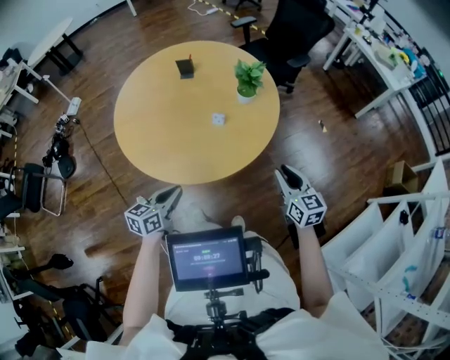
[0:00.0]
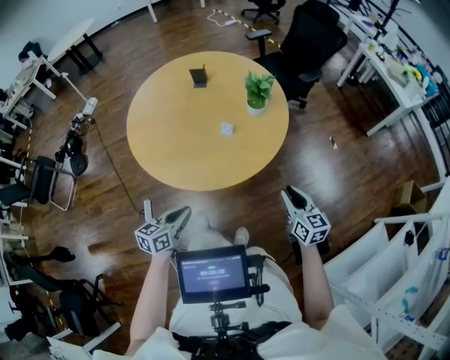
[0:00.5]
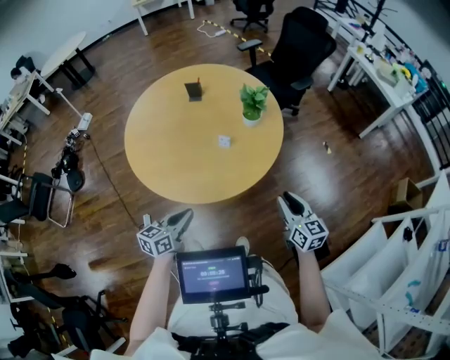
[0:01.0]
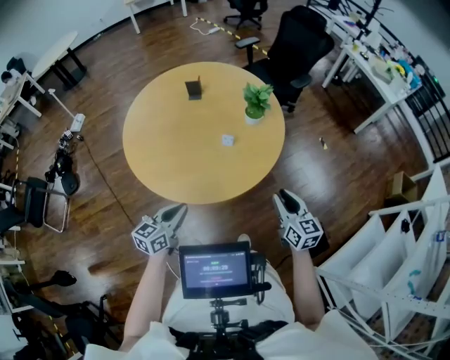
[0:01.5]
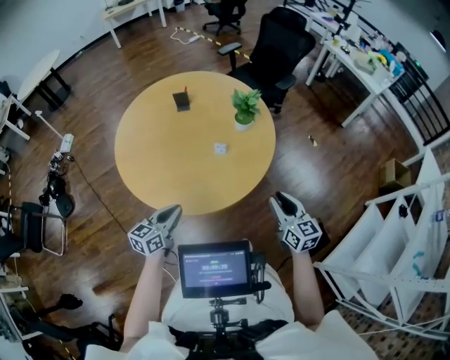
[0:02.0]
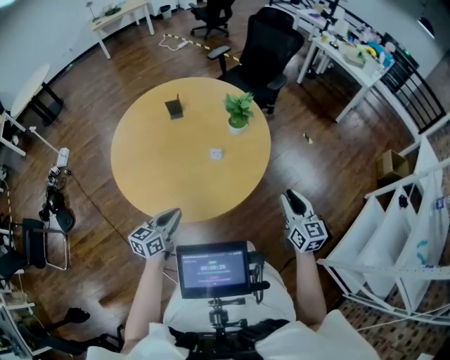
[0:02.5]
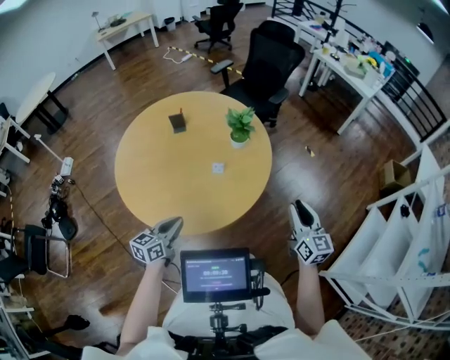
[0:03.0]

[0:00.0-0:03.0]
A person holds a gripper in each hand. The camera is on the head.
0:00.0 to 0:01.5: The right gripper shifts about 5 cm to the left.
0:01.5 to 0:03.0: The left gripper moves forward, about 5 cm. The right gripper is displaced upward by about 5 cm, and turns by approximately 20 degrees.

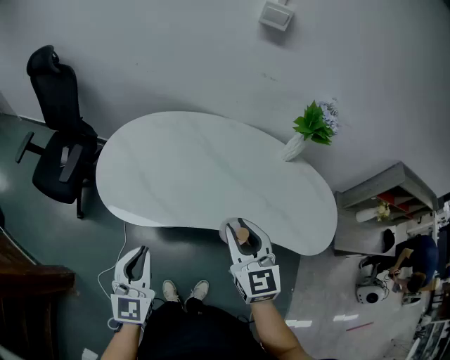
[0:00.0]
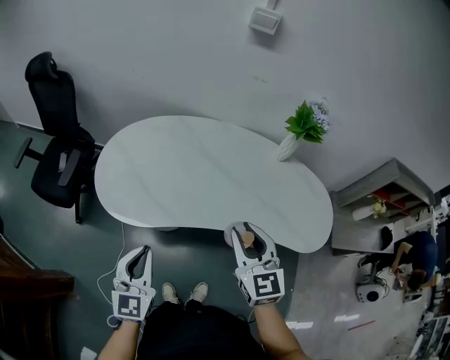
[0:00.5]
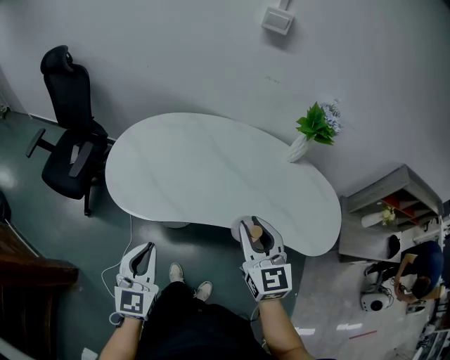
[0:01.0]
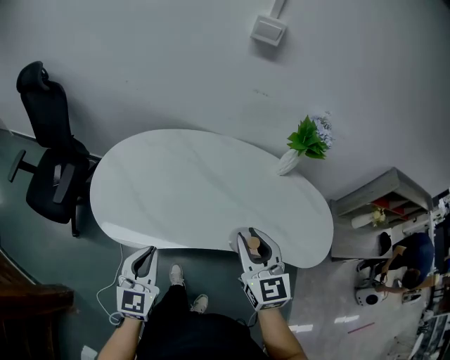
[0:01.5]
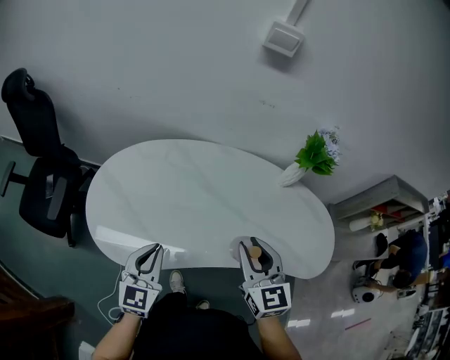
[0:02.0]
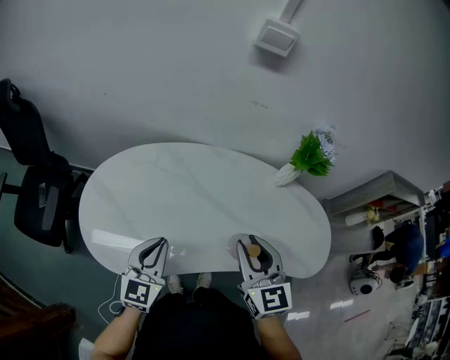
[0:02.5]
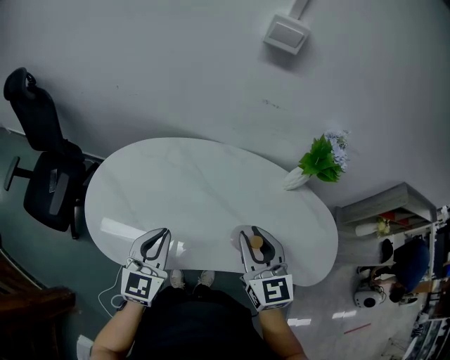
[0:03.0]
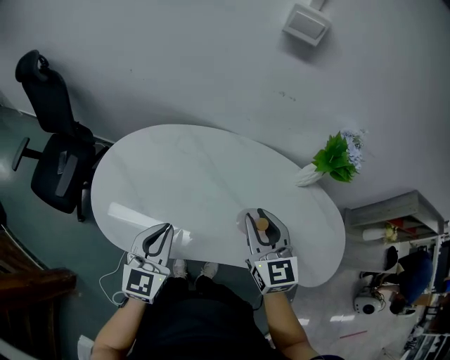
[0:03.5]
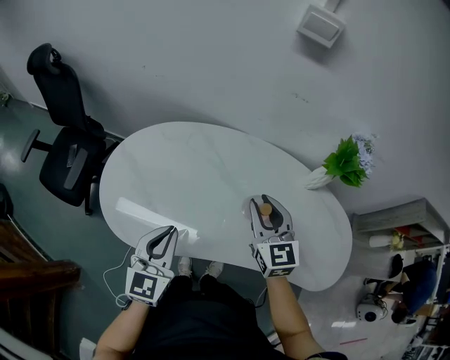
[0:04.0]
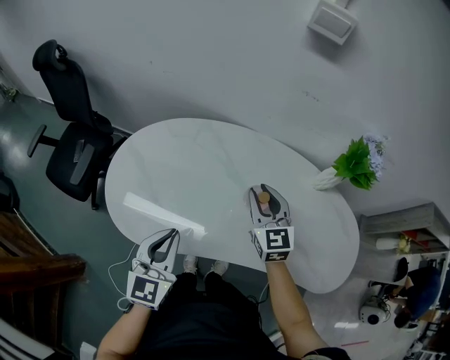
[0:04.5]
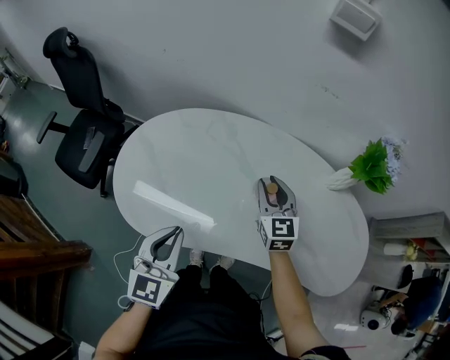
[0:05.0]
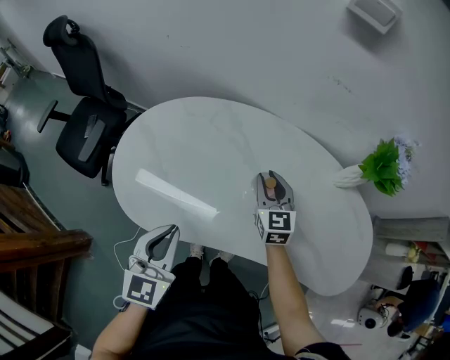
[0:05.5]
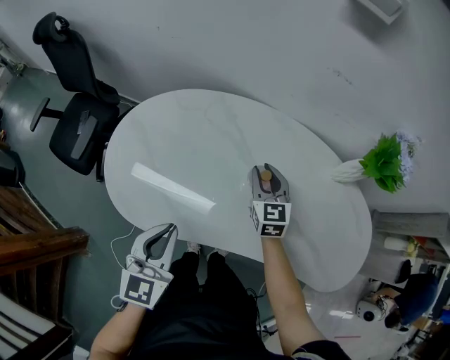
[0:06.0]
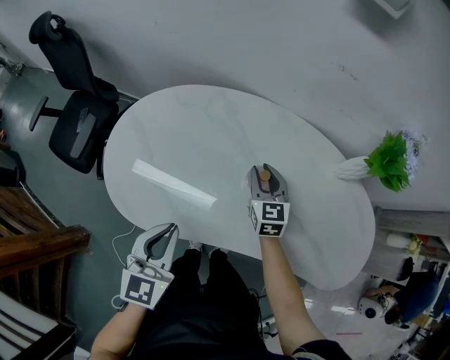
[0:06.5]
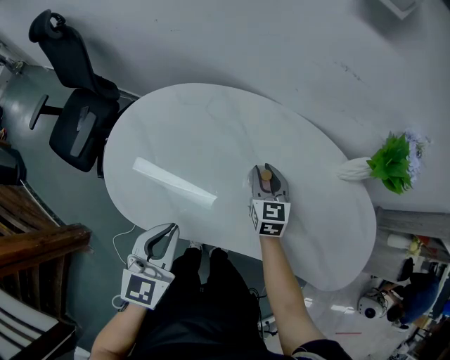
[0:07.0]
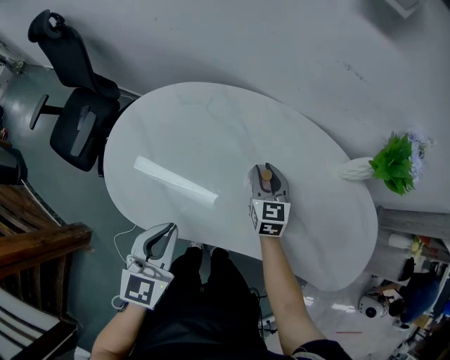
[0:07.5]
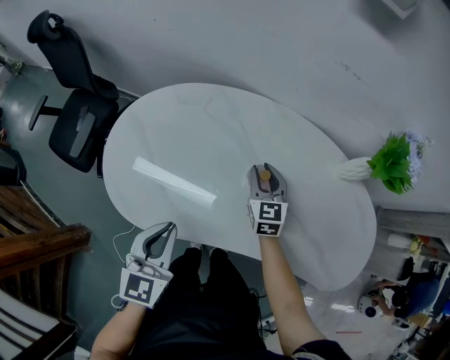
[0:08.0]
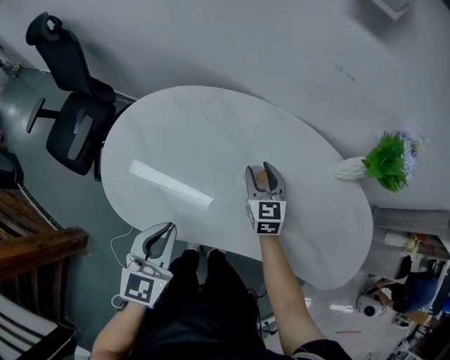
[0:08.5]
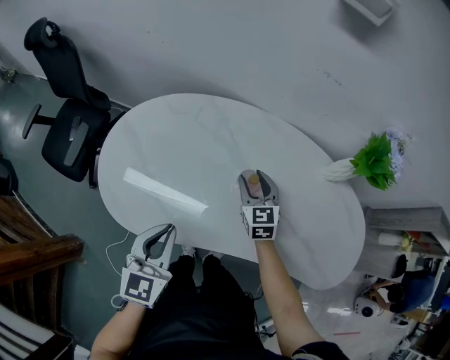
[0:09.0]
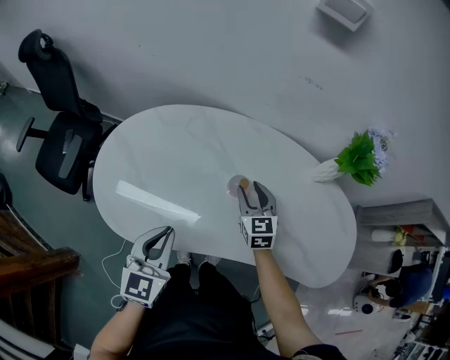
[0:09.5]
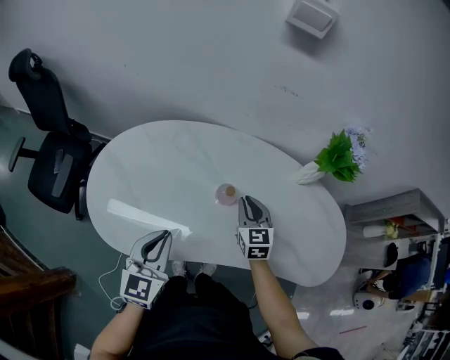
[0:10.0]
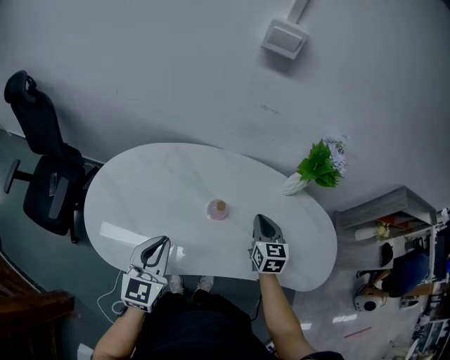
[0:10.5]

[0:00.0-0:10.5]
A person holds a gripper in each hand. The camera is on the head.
0:00.0 to 0:02.0: The left gripper shifts about 15 cm forward, while the right gripper shifts some 10 cm forward.
0:02.0 to 0:04.0: The right gripper is displaced forward by some 15 cm; the left gripper moves roughly 5 cm.
0:04.0 to 0:06.5: The right gripper is displaced downward and forward by roughly 20 cm.
0:06.5 to 0:08.5: The grippers stay close to where they were, moving slightly.
0:08.5 to 0:10.5: The right gripper travels to the right, upward and backward by some 15 cm, rotates roughly 20 degrees, and closes. The left gripper moves roughly 5 cm.

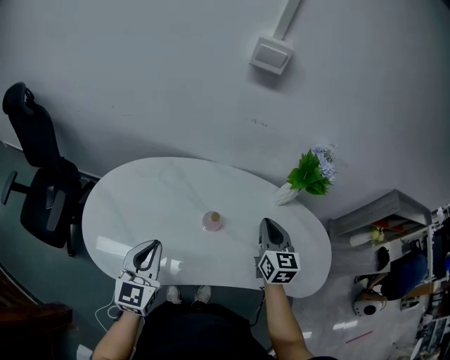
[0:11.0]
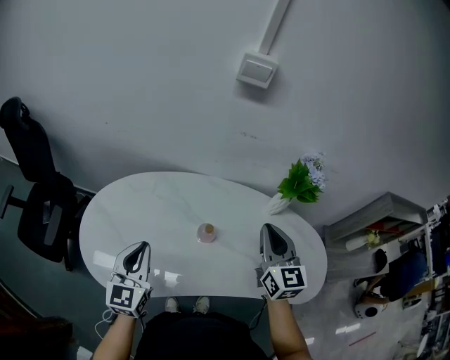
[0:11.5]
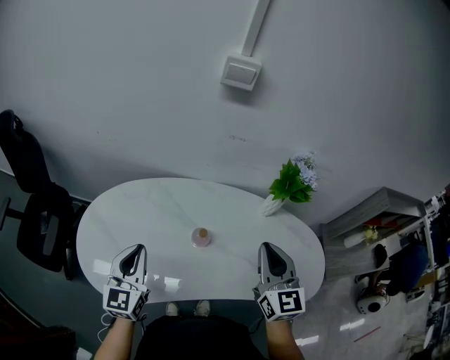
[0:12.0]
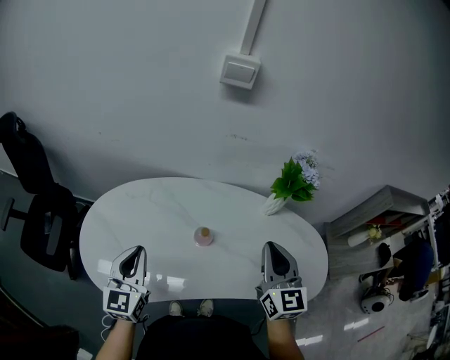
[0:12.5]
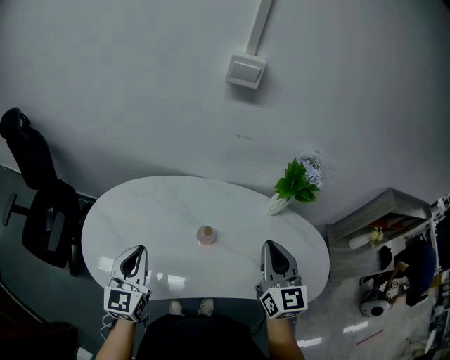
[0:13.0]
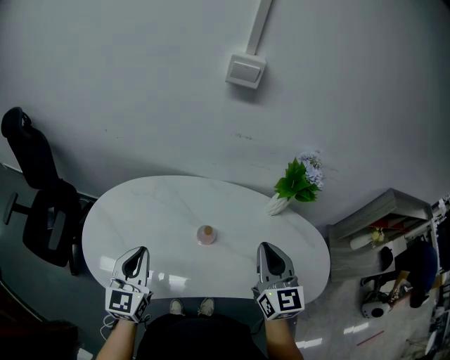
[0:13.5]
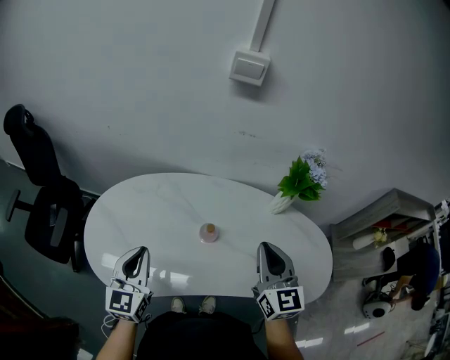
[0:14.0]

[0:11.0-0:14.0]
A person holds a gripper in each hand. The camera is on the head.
0:11.0 to 0:12.5: The right gripper heads upward and backward, covering roughly 10 cm.
0:12.5 to 0:14.0: The grippers stay close to where they were, moving slightly.

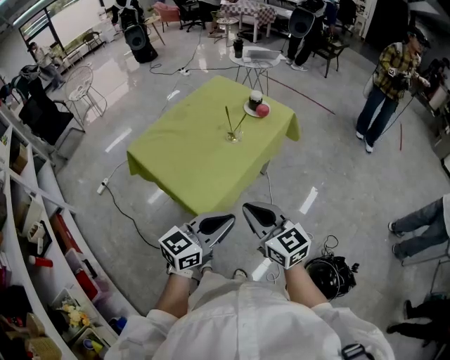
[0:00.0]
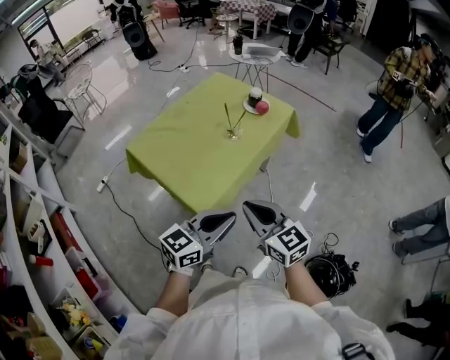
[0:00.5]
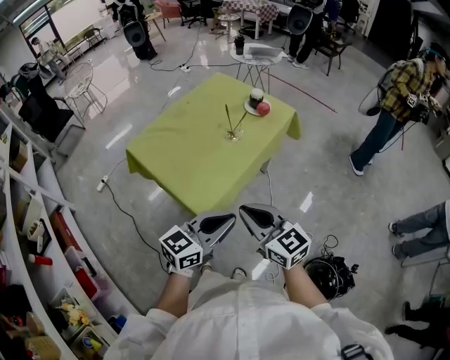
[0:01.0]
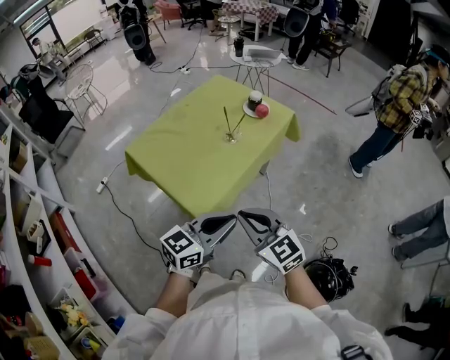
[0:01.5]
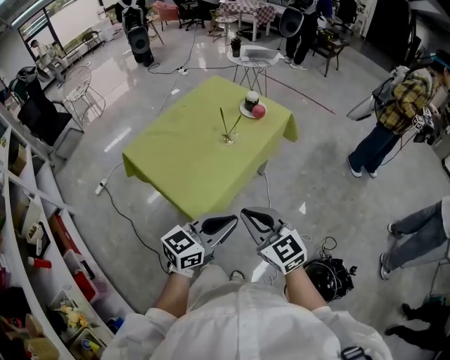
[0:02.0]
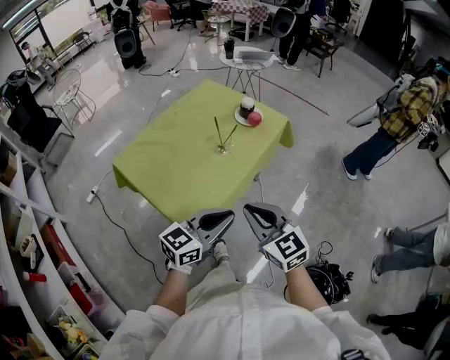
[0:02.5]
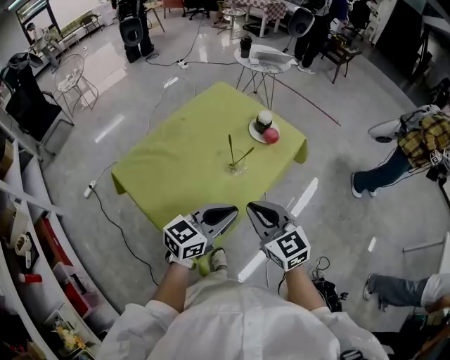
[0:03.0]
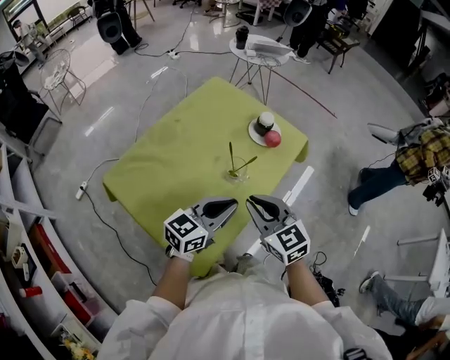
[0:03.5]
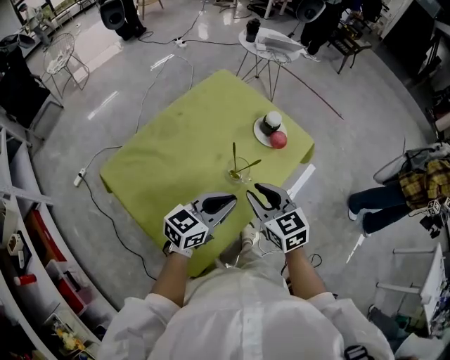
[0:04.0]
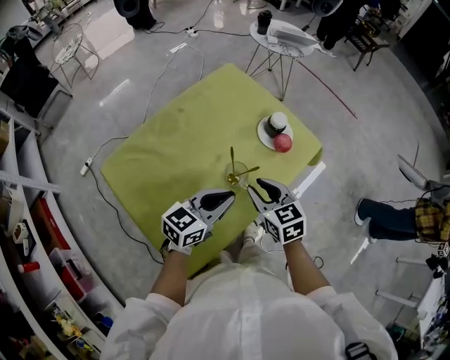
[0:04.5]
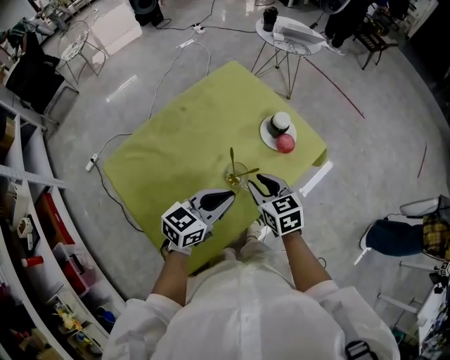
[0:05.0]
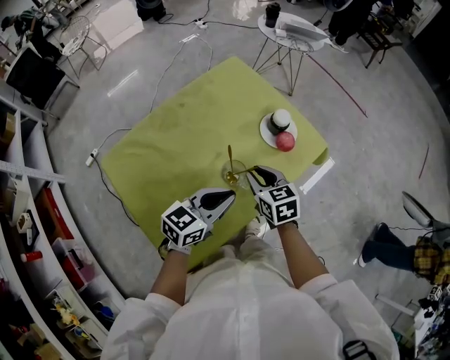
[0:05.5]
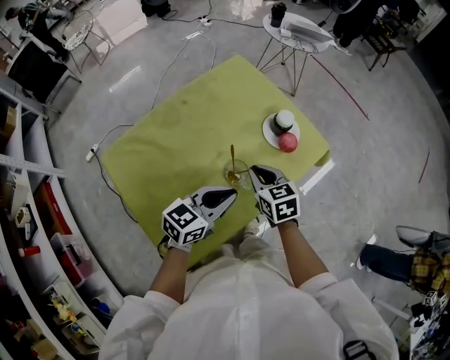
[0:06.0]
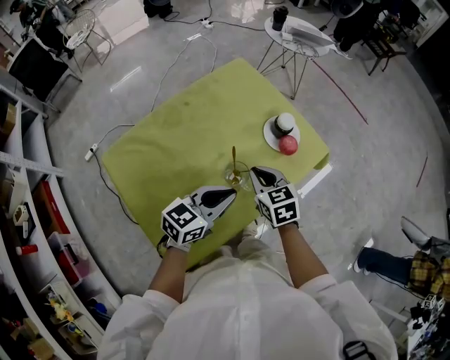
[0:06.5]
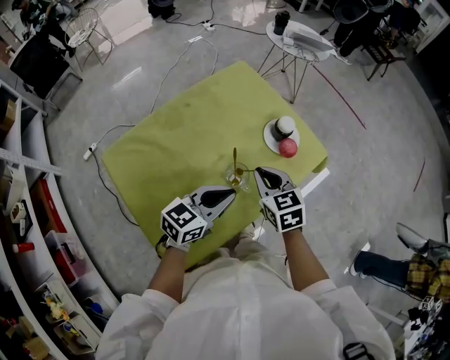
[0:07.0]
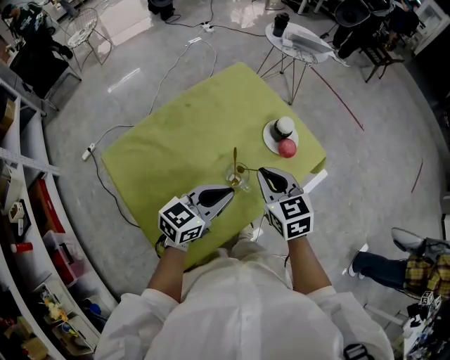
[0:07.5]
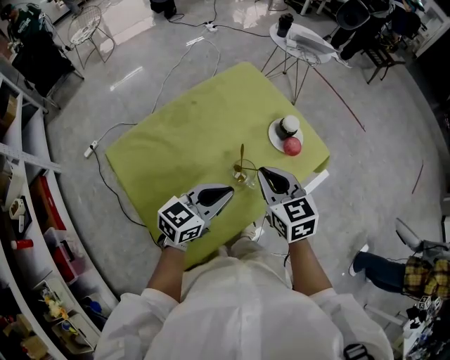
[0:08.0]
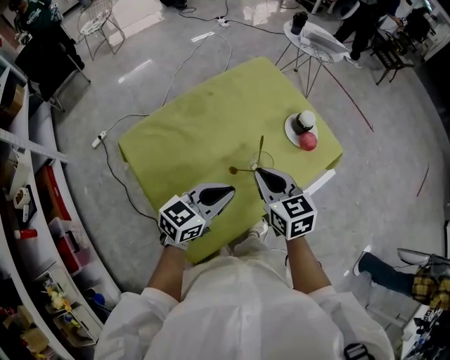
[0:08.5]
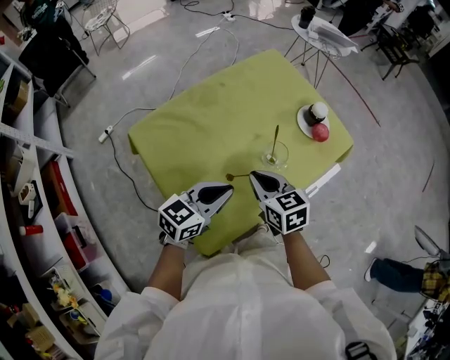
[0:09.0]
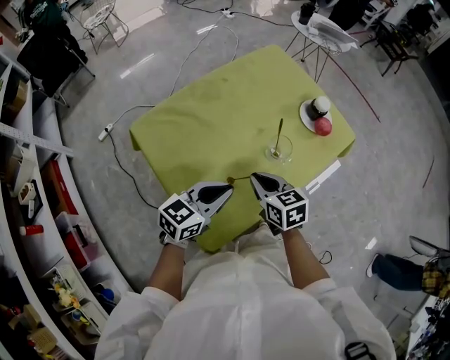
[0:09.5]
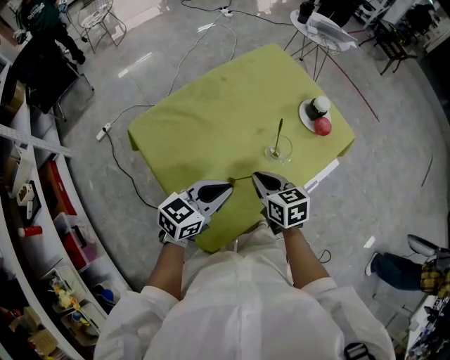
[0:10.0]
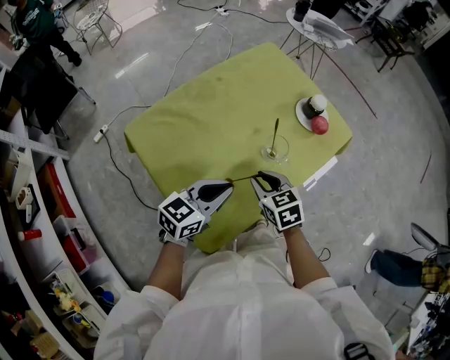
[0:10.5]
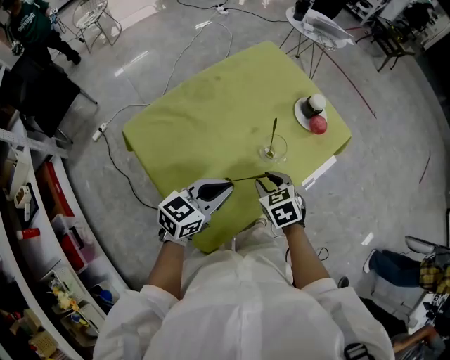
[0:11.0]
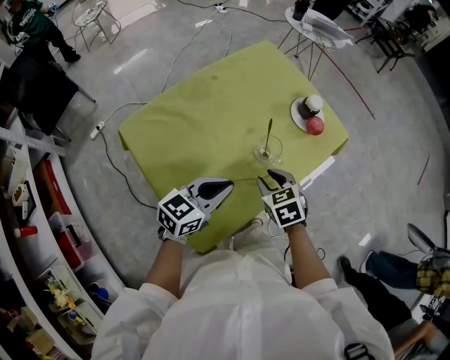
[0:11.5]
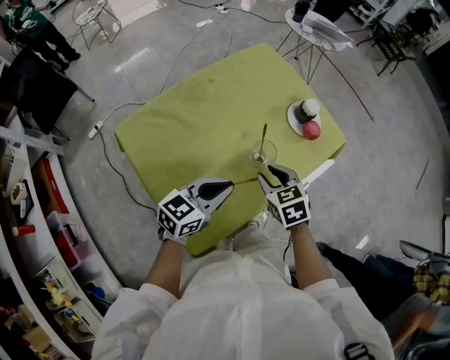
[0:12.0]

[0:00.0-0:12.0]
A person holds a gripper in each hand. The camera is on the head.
0:00.0 to 0:02.0: The grippers stay close to where they were, moving slightly.
0:02.0 to 0:04.0: Both grippers travel together forward, some 25 cm. The right gripper opens its fingers.
0:04.0 to 0:06.0: The right gripper moves forward and downward, some 10 cm.
0:06.0 to 0:08.0: The right gripper moves upward, roughly 10 cm.
0:08.0 to 0:10.0: The right gripper shifts some 15 cm downward, to the left and backward. Meanwhile the left gripper moves to the left and backward, about 10 cm.
0:10.0 to 0:12.0: The right gripper travels to the right by roughly 5 cm, swivels approximately 20 degrees, and opens its fingers.
